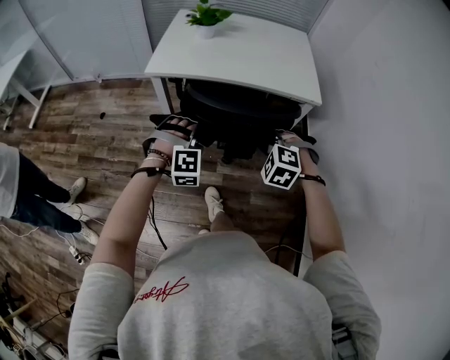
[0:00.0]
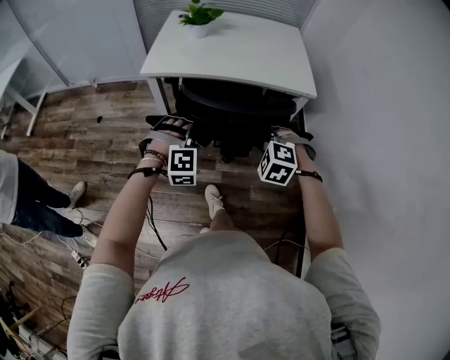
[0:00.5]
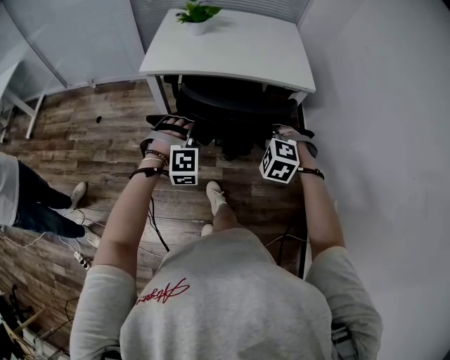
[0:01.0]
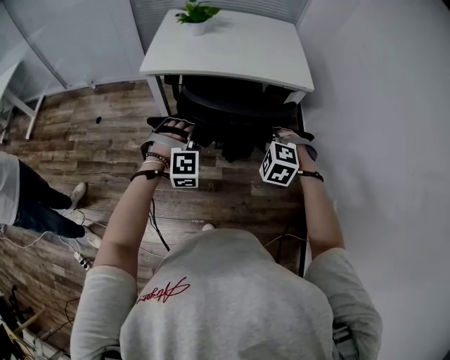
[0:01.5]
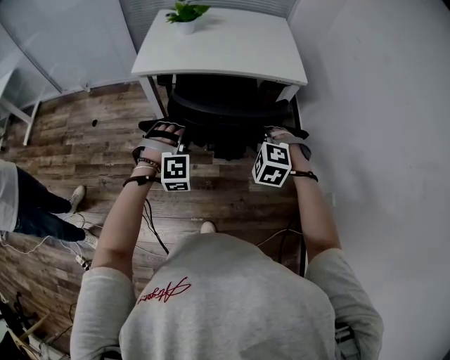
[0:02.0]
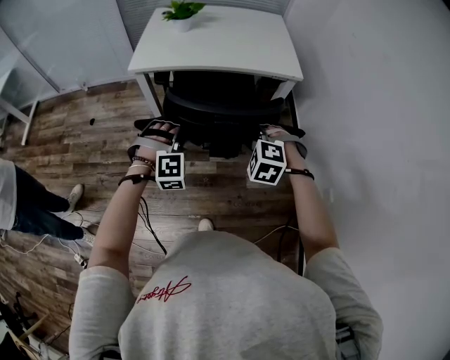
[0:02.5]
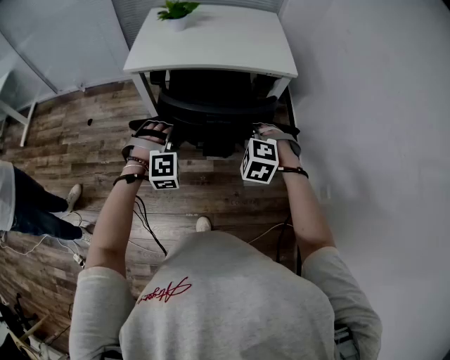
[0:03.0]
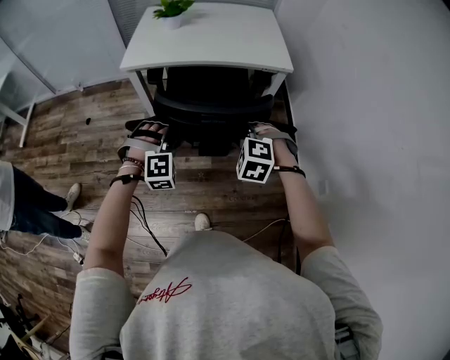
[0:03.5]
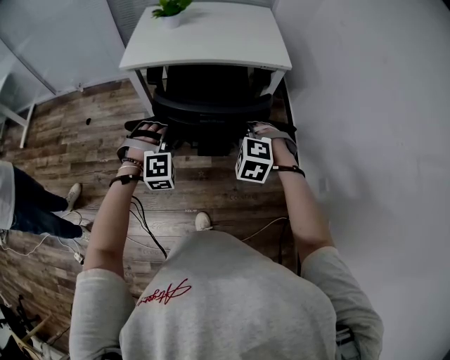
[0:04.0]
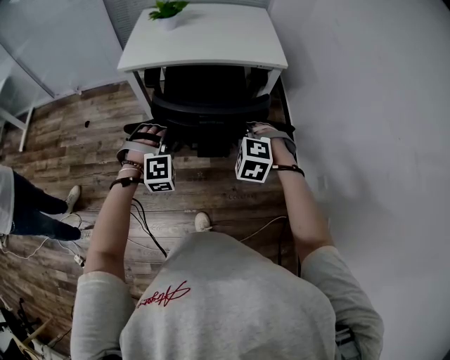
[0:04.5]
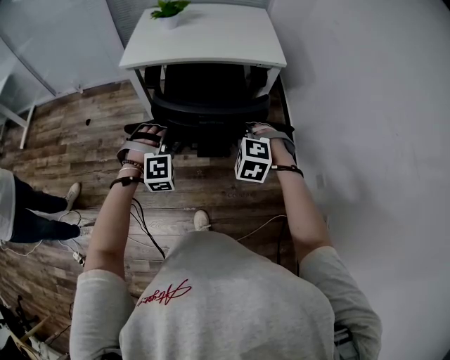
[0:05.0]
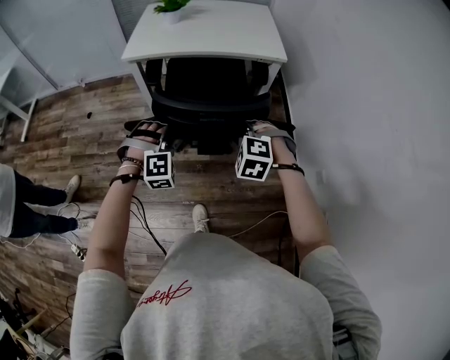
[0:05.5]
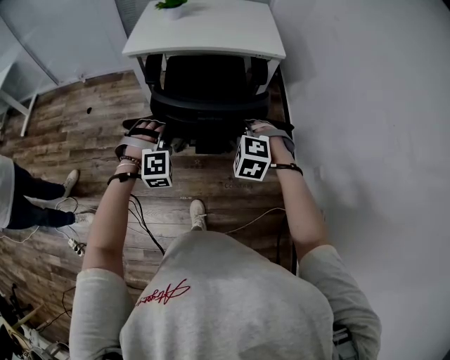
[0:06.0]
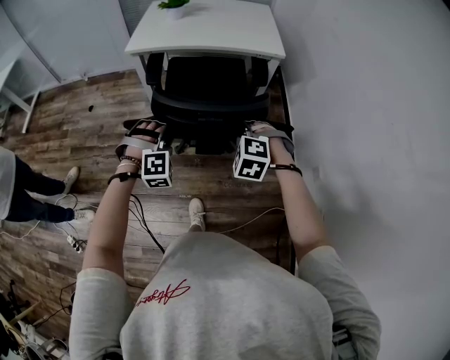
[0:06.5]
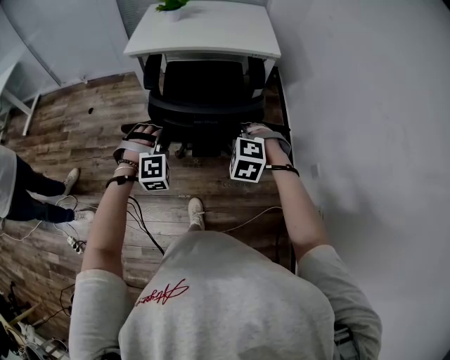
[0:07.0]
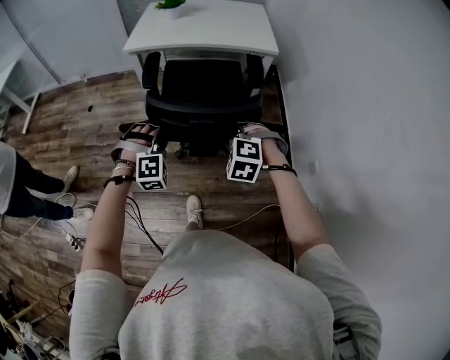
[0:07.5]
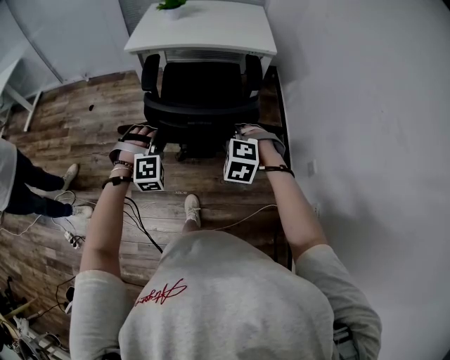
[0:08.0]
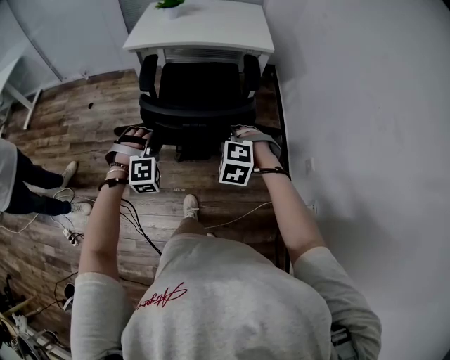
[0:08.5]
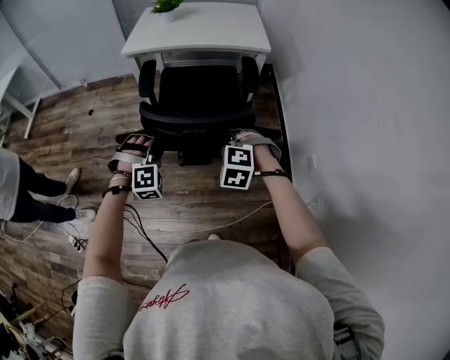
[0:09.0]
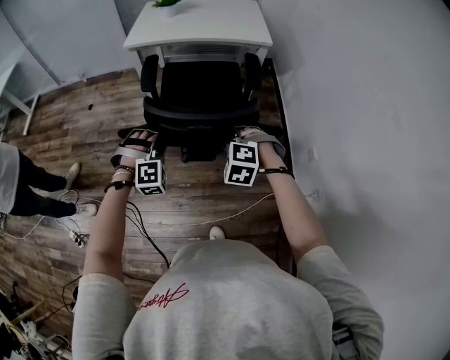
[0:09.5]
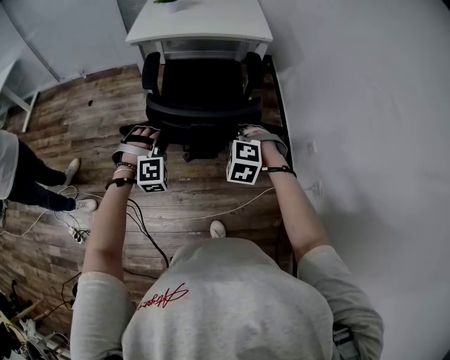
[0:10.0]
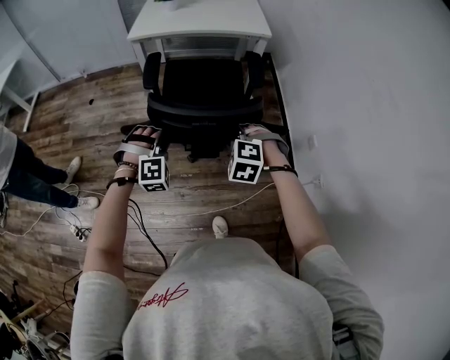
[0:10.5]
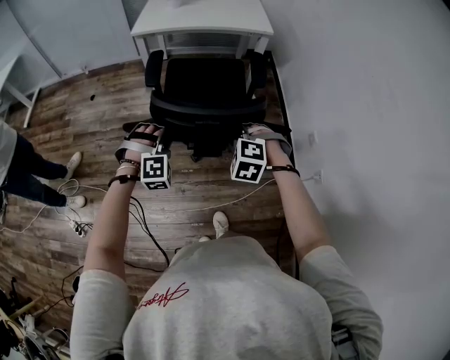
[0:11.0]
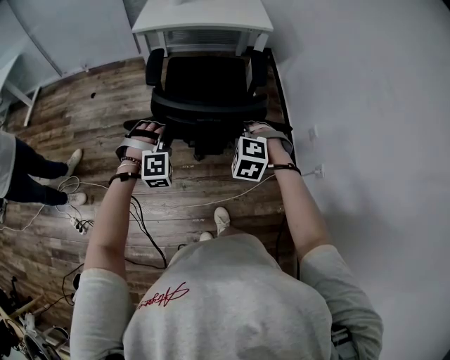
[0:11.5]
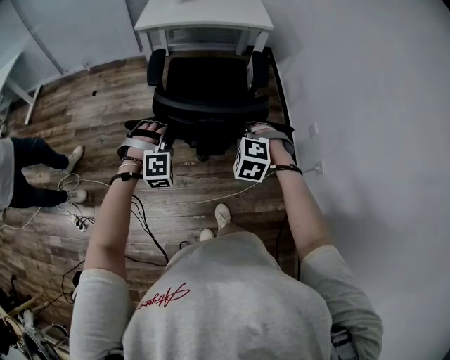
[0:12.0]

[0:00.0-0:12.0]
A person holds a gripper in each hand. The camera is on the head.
0:00.0 to 0:02.0: Both grippers move backward, about 5 cm.
0:02.0 to 0:04.0: The two grippers go roughly 5 cm backward.
0:04.0 to 0:06.0: Both grippers travel together backward, about 10 cm.
0:06.0 to 0:08.0: Both grippers move backward, about 10 cm.
0:08.0 to 0:10.0: Both grippers travel together backward, about 10 cm.
0:10.0 to 0:12.0: The two grippers go approximately 10 cm backward.

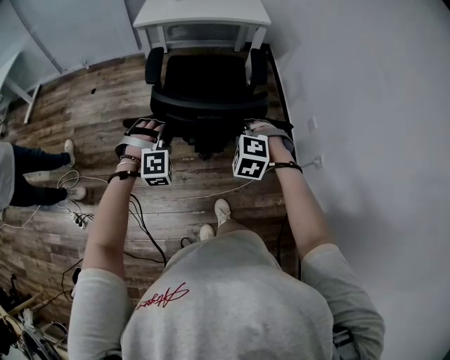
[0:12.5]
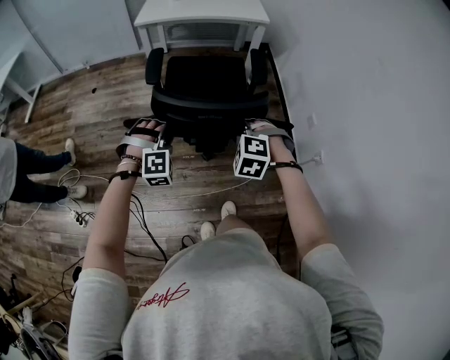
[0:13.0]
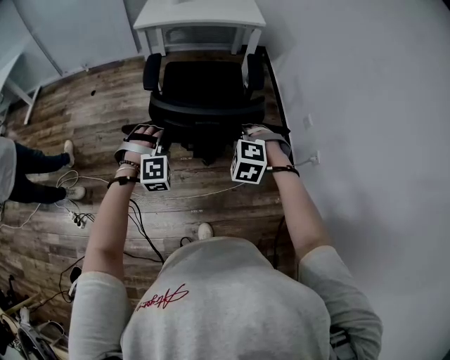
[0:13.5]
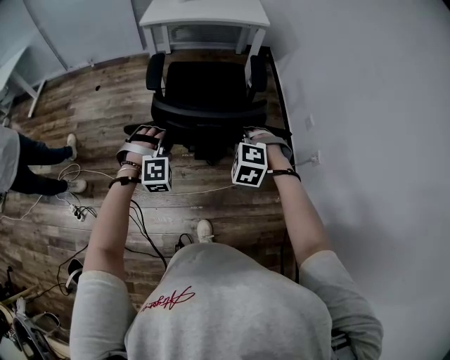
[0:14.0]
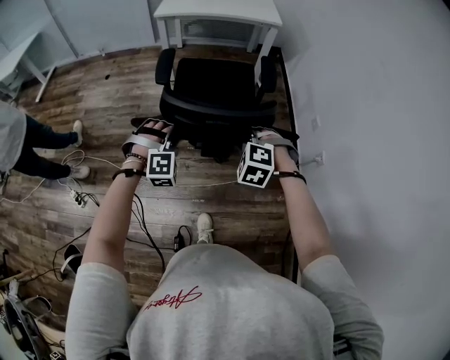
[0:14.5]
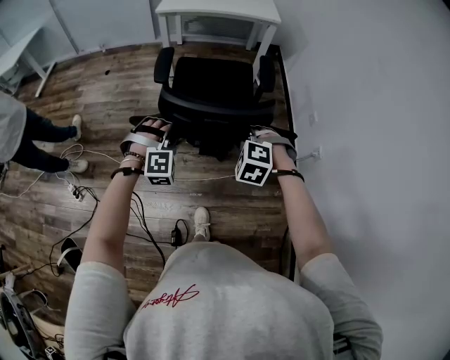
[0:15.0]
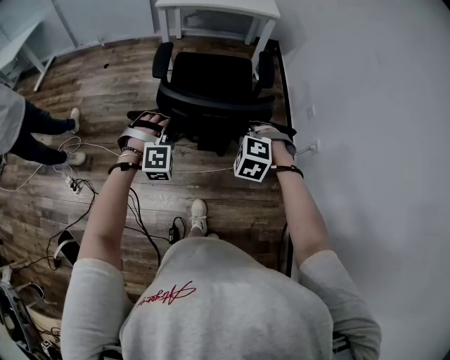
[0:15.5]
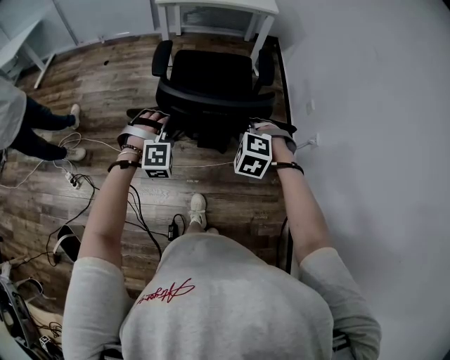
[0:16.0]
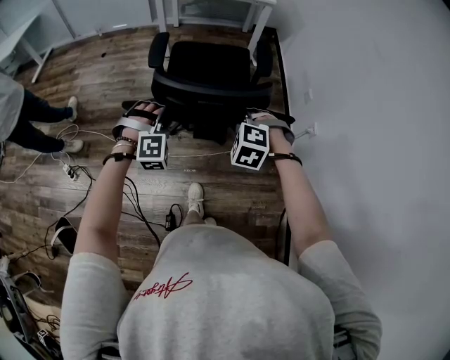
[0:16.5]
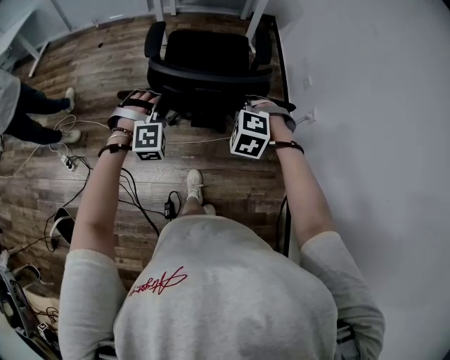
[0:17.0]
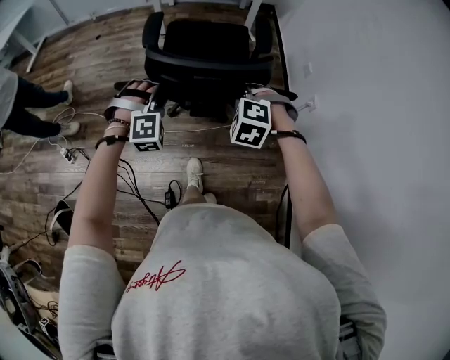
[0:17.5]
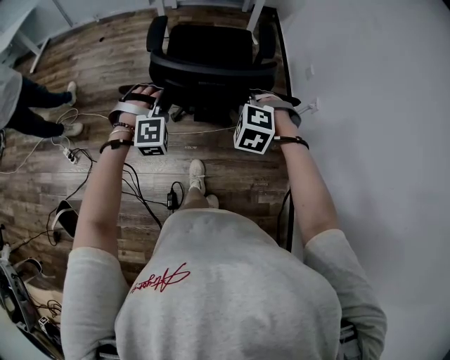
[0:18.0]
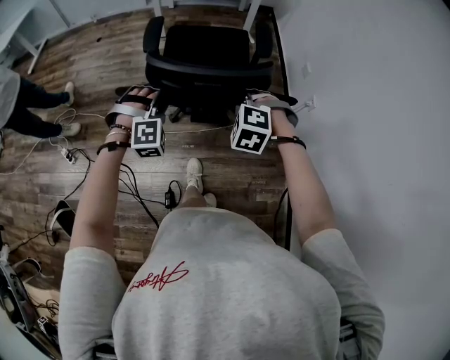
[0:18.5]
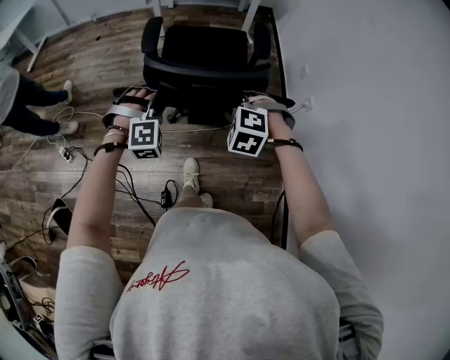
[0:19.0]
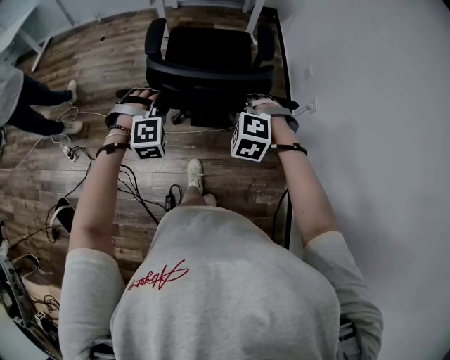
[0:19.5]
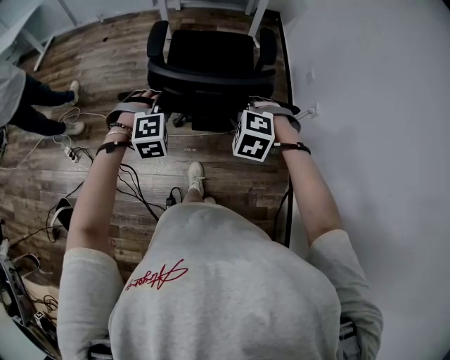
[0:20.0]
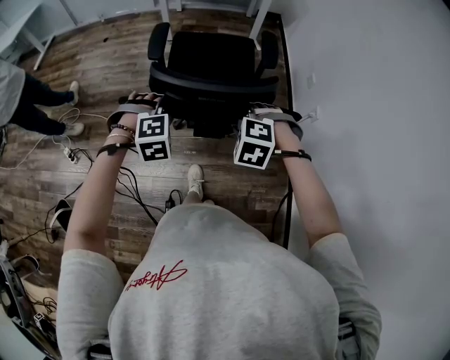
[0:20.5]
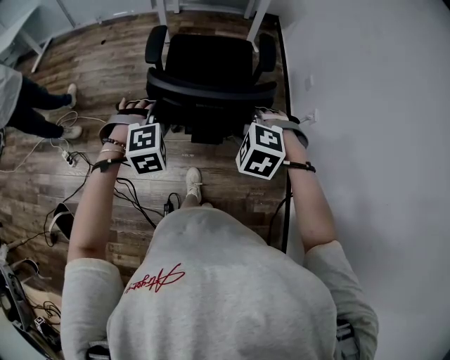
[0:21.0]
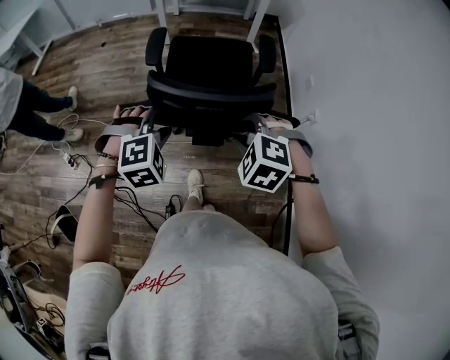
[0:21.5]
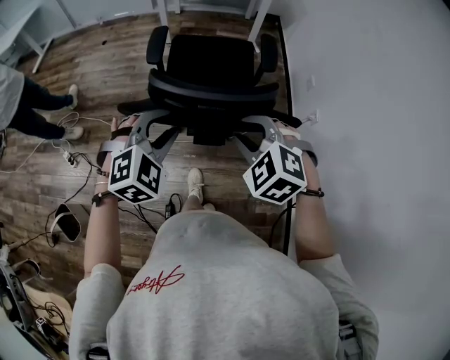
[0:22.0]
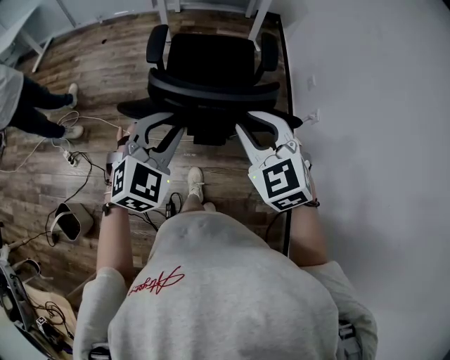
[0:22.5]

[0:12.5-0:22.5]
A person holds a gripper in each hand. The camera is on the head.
0:12.5 to 0:14.5: The two grippers go roughly 10 cm backward.
0:14.5 to 0:16.5: The grippers both shift backward by roughly 10 cm.
0:16.5 to 0:18.5: Both grippers move backward, roughly 5 cm.
0:18.5 to 0:20.5: The left gripper changes its angle by roughly 20 degrees.
0:20.5 to 0:22.5: The left gripper heads upward and backward, covering roughly 15 cm, and angles its fingers upward, by roughly 30 degrees. Meanwhile the right gripper is displaced upward by approximately 15 cm, and angles its fingers upward, by some 30 degrees.

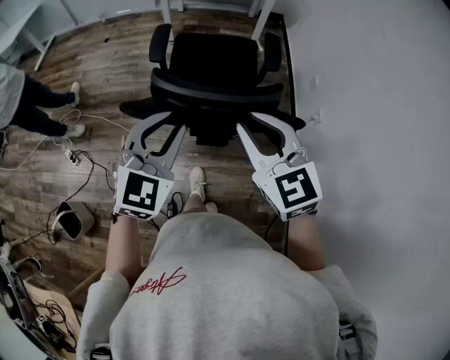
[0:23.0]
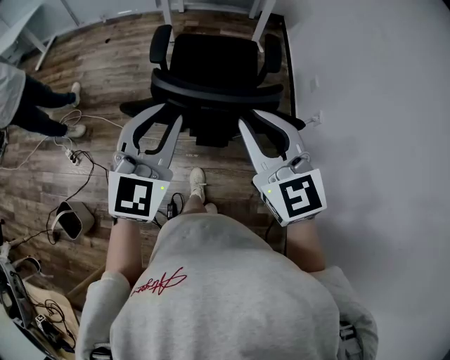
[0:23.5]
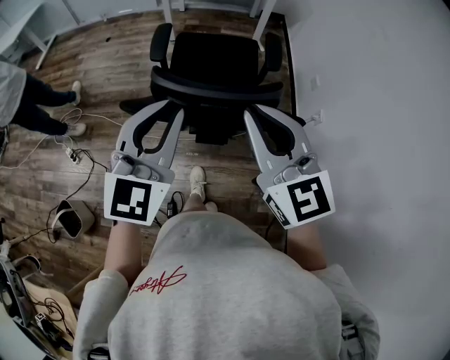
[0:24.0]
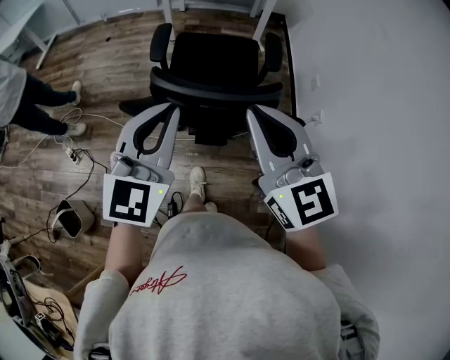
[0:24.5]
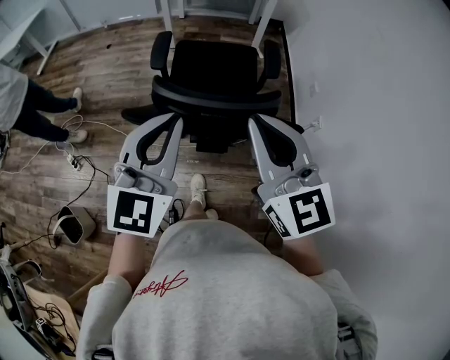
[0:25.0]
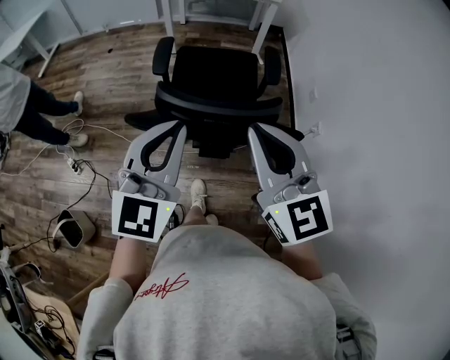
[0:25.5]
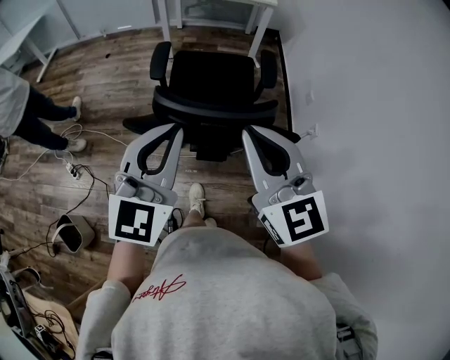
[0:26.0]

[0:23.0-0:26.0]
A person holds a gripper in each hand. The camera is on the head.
0:23.0 to 0:24.5: Both grippers travel together upward, some 5 cm. The left gripper closes.
0:24.5 to 0:26.0: There are only small adjustments of the grippers.

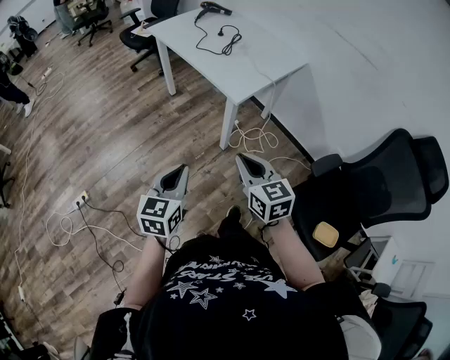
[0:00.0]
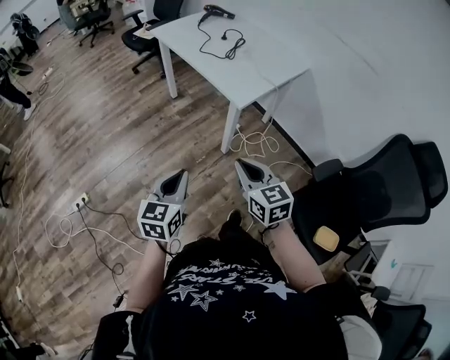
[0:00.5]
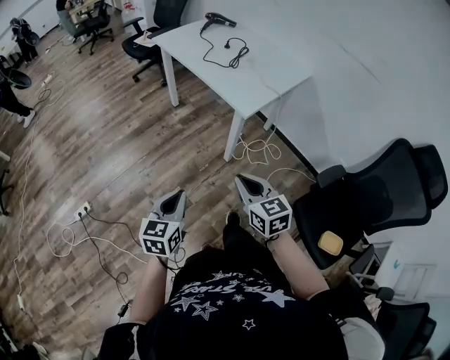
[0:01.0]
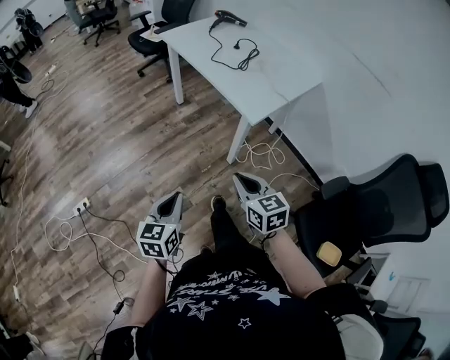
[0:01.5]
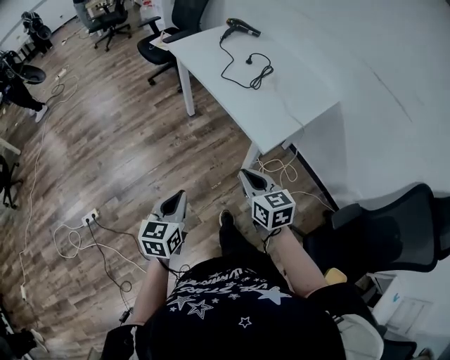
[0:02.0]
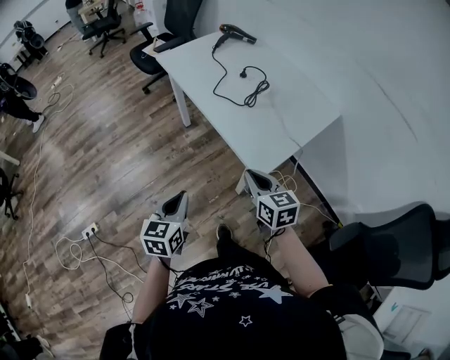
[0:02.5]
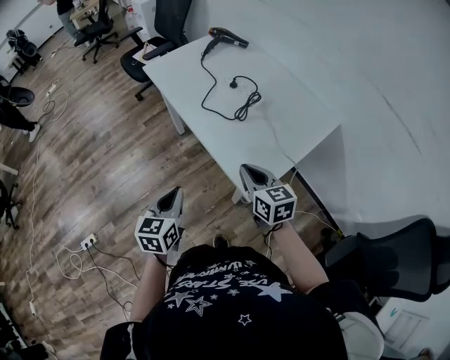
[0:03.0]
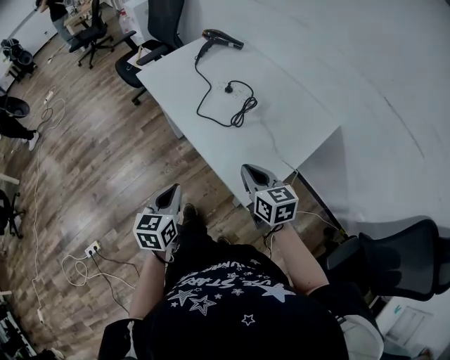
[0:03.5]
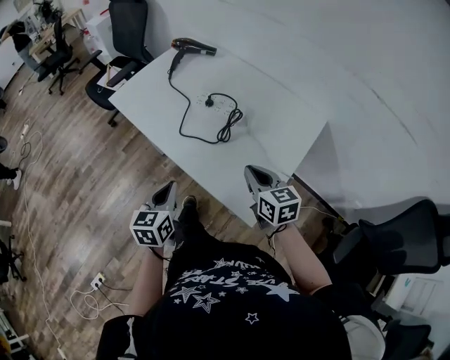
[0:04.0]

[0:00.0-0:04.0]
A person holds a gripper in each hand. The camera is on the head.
0:00.0 to 0:02.0: The right gripper travels forward by roughly 20 cm; the left gripper moves forward and to the left, roughly 15 cm.
0:02.0 to 0:04.0: The right gripper heads forward and to the right, covering roughly 35 cm. Meanwhile the left gripper heads forward, covering roughly 40 cm.
